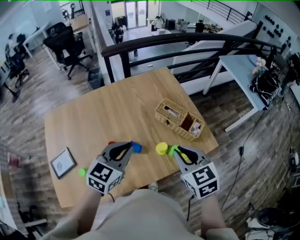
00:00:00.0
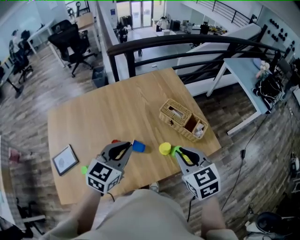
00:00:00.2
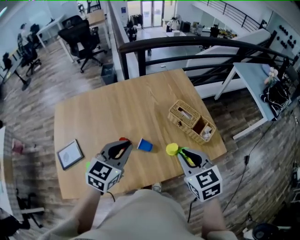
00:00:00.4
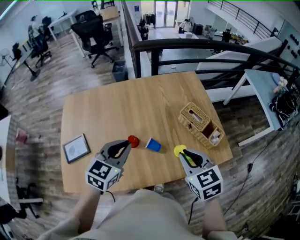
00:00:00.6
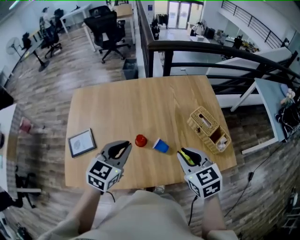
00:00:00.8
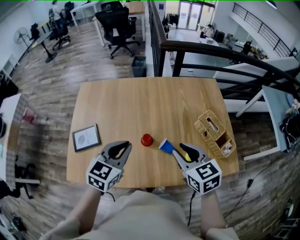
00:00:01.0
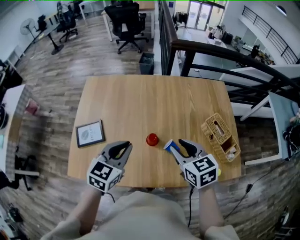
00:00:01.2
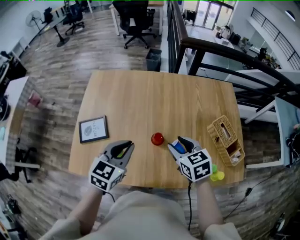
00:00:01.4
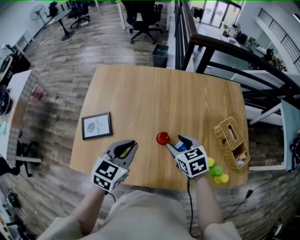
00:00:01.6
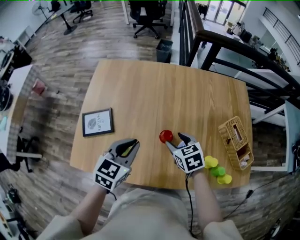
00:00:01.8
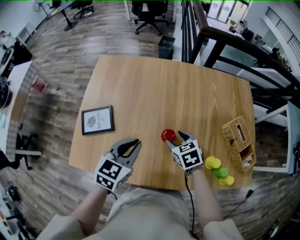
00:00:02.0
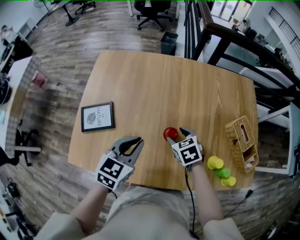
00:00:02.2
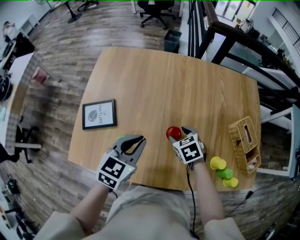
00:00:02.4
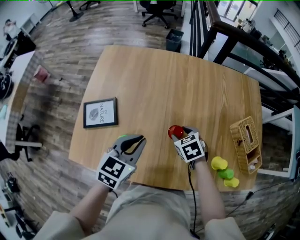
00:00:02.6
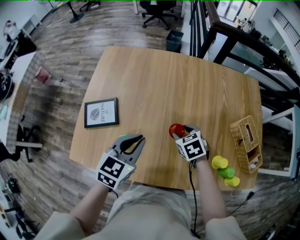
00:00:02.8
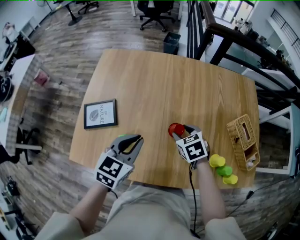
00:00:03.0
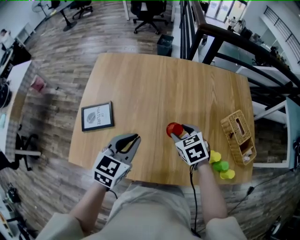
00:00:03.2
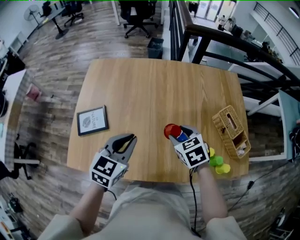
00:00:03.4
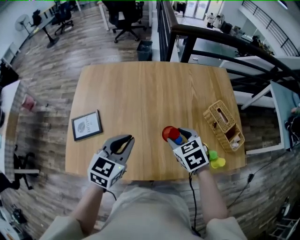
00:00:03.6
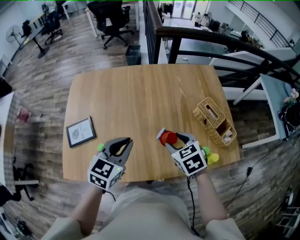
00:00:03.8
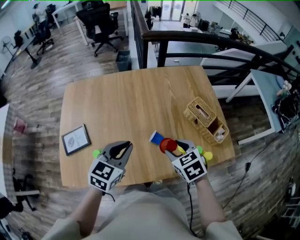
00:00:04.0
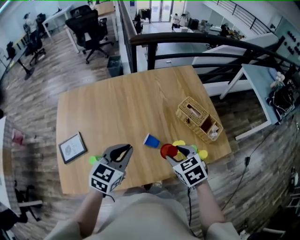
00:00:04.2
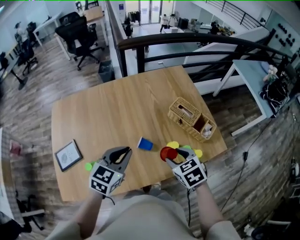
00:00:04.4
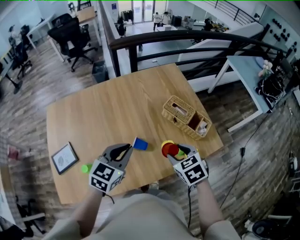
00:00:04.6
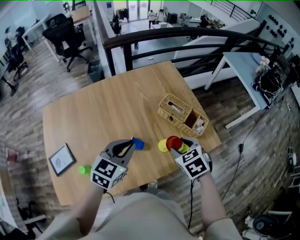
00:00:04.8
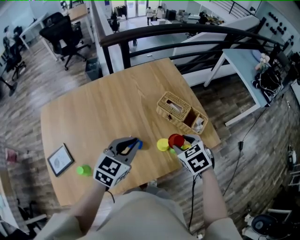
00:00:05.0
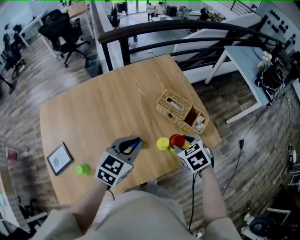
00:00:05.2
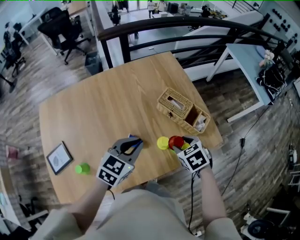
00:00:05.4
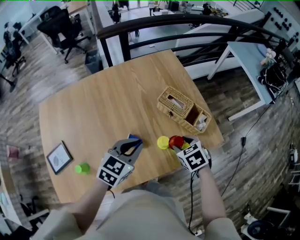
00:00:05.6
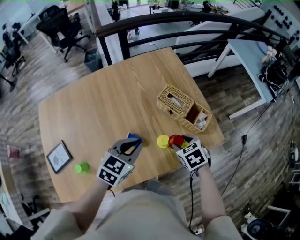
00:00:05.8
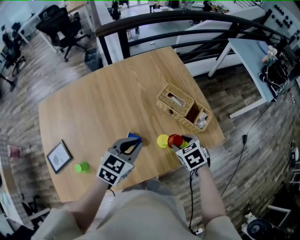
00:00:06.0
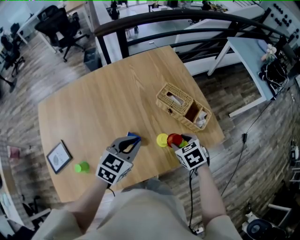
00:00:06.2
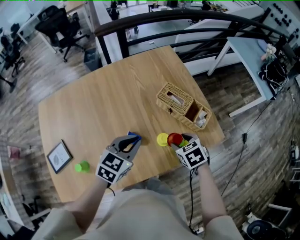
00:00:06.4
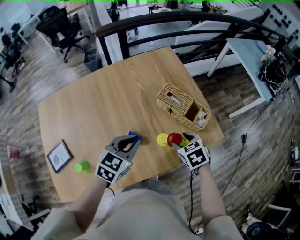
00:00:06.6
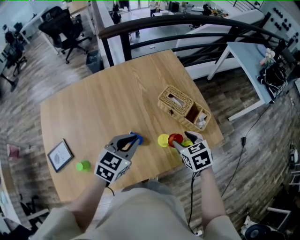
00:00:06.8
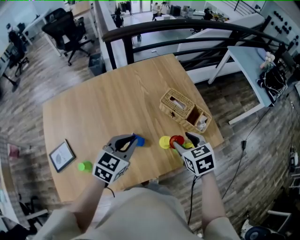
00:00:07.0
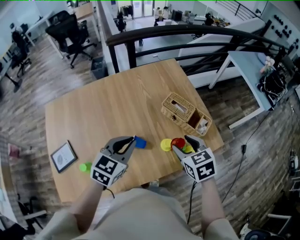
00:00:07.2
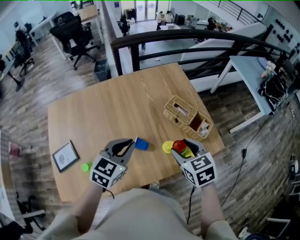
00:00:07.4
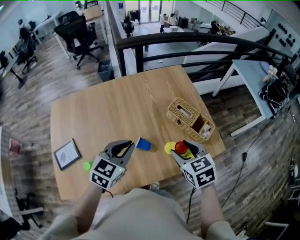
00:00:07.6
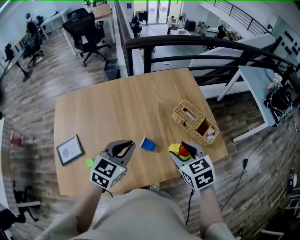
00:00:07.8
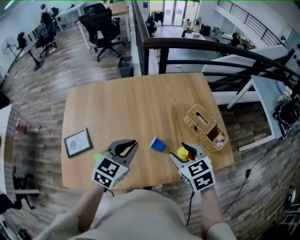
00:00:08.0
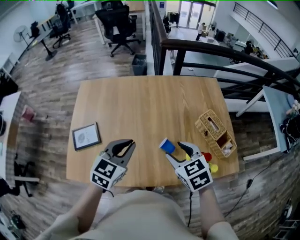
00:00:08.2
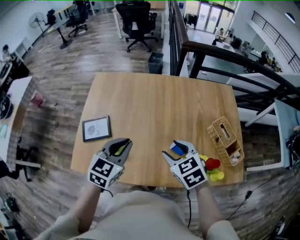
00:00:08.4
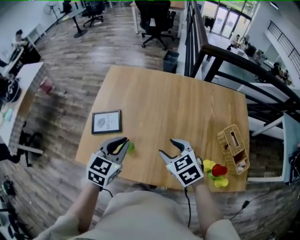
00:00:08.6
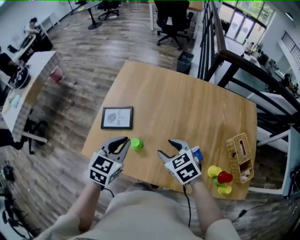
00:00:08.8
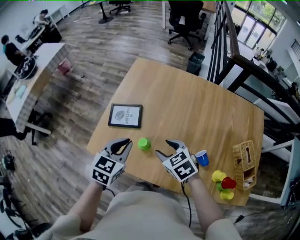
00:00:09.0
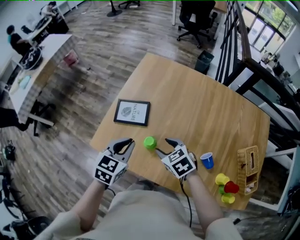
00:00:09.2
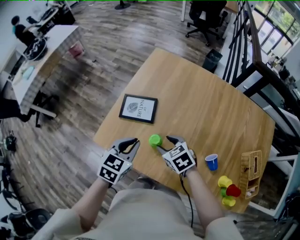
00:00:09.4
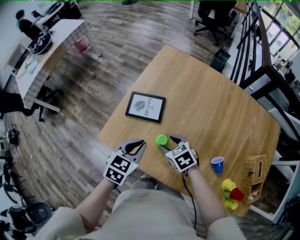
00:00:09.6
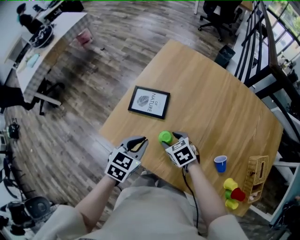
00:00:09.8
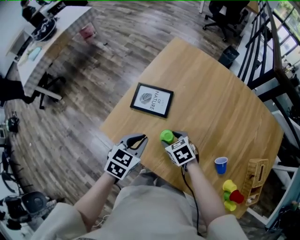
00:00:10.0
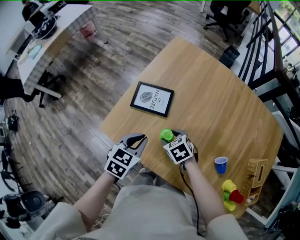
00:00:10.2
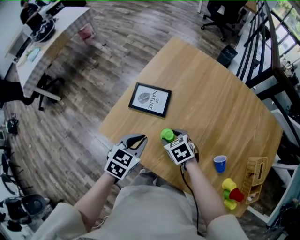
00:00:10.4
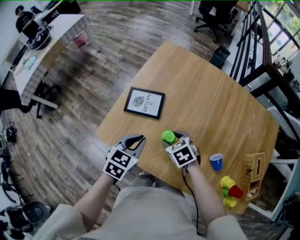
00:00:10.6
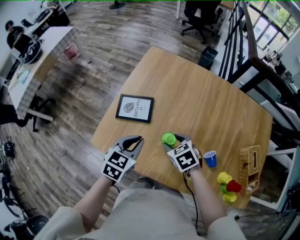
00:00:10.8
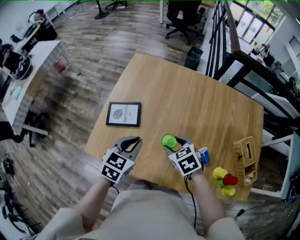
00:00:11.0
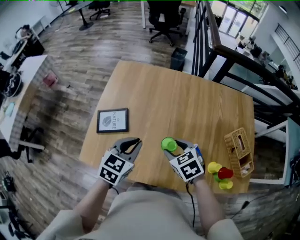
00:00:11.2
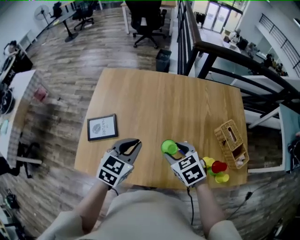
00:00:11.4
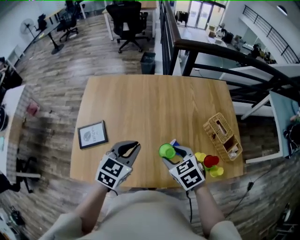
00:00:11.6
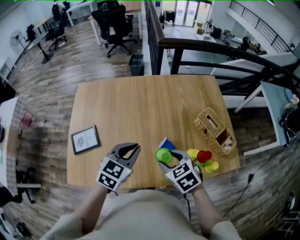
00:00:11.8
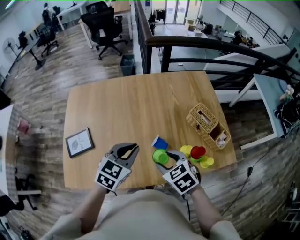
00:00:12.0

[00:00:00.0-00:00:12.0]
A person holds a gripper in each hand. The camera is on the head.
00:00:00.0 to 00:00:01.6: The left gripper shifts by some 25 cm, and swivels about 30 degrees. Meanwhile the right gripper ends up roughly 30 cm from where it was, swivels some 30 degrees, and opens.
00:00:01.6 to 00:00:03.0: The left gripper changes place by approximately 5 cm. Meanwhile the right gripper goes about 10 cm downward.
00:00:03.0 to 00:00:04.4: The right gripper shifts some 30 cm to the right, backward and upward, and rotates some 20 degrees, while the left gripper moves to the right, roughly 20 cm, and swivels about 30 degrees.
00:00:04.4 to 00:00:06.0: The left gripper shifts approximately 15 cm to the right, forward and downward. The right gripper is displaced to the right, downward and forward by about 15 cm.
00:00:06.0 to 00:00:07.6: The right gripper moves upward and to the left, about 15 cm, and rotates some 20 degrees, while the left gripper moves to the left and upward, some 10 cm.
00:00:07.6 to 00:00:09.0: The left gripper moves approximately 35 cm, and rotates some 40 degrees; the right gripper changes place by about 40 cm, and changes its angle by about 50 degrees.
00:00:09.0 to 00:00:10.4: The right gripper goes approximately 15 cm downward, to the left and forward. Meanwhile the left gripper moves downward and to the left, roughly 10 cm.
00:00:10.4 to 00:00:12.0: The right gripper shifts by approximately 40 cm, and swivels some 40 degrees. The left gripper shifts by some 35 cm, and changes its angle by approximately 40 degrees.

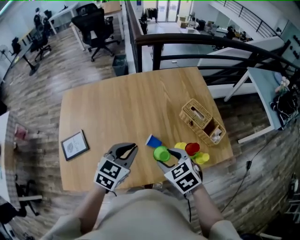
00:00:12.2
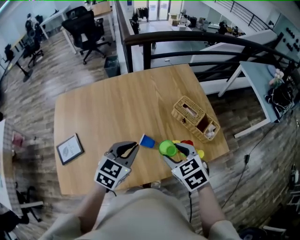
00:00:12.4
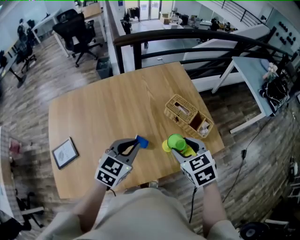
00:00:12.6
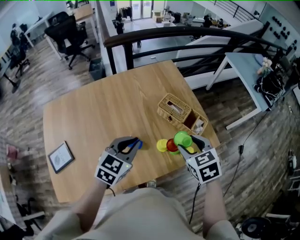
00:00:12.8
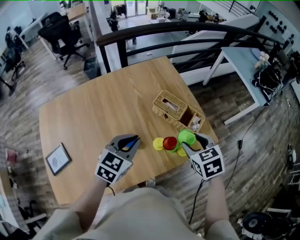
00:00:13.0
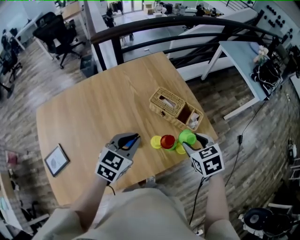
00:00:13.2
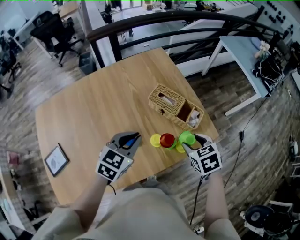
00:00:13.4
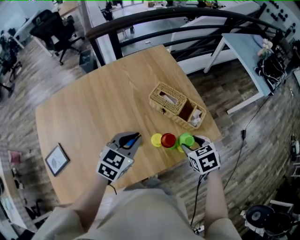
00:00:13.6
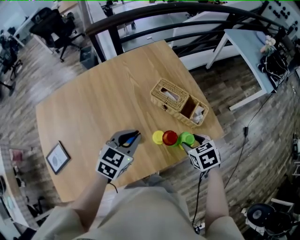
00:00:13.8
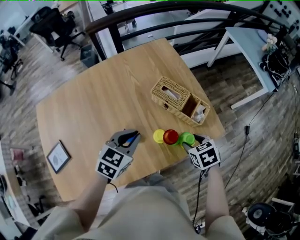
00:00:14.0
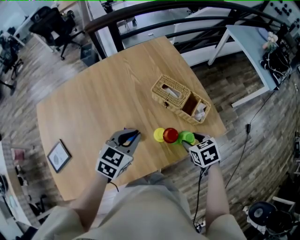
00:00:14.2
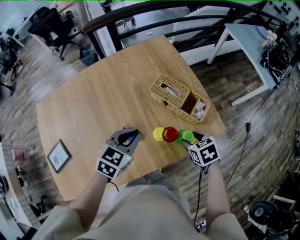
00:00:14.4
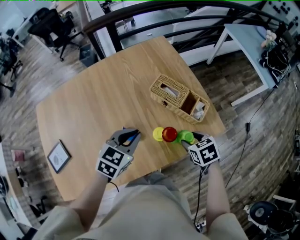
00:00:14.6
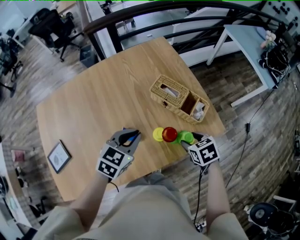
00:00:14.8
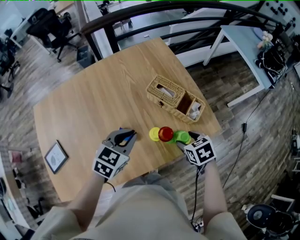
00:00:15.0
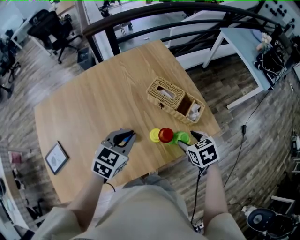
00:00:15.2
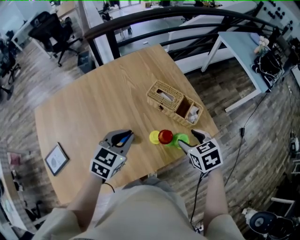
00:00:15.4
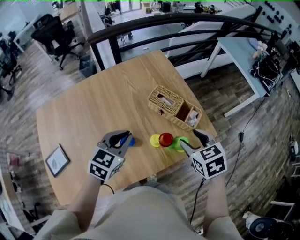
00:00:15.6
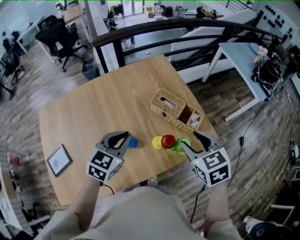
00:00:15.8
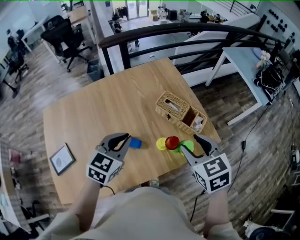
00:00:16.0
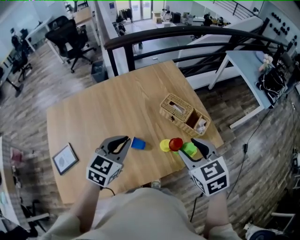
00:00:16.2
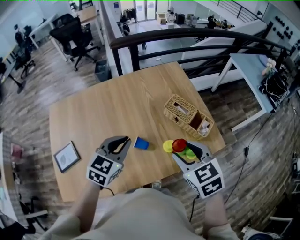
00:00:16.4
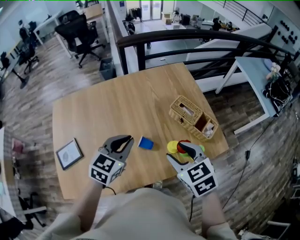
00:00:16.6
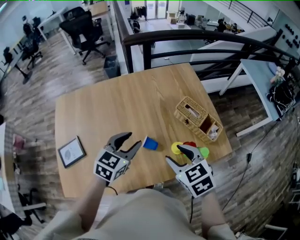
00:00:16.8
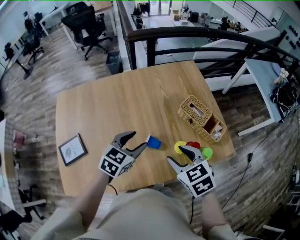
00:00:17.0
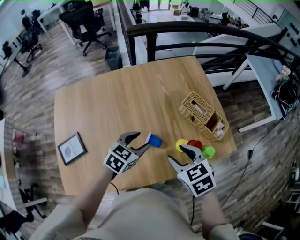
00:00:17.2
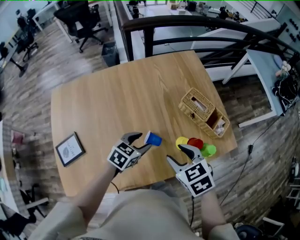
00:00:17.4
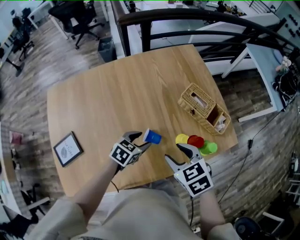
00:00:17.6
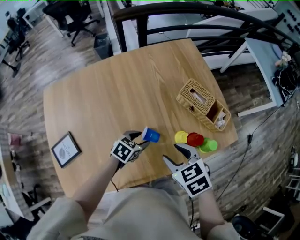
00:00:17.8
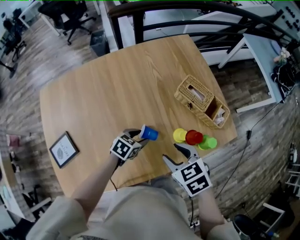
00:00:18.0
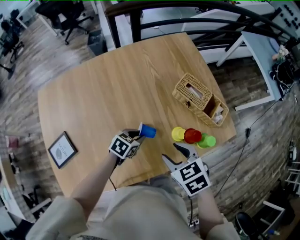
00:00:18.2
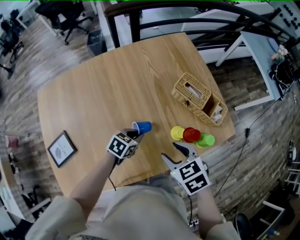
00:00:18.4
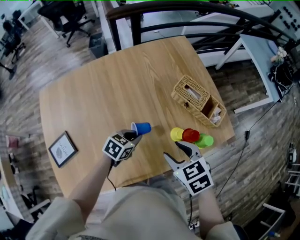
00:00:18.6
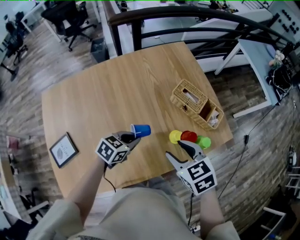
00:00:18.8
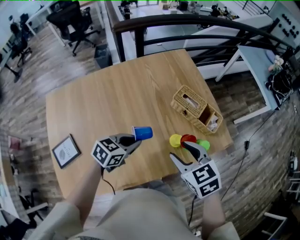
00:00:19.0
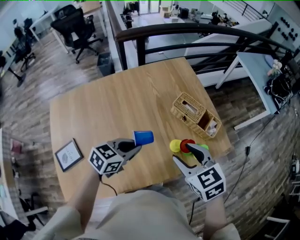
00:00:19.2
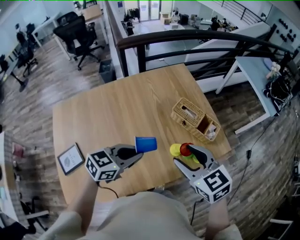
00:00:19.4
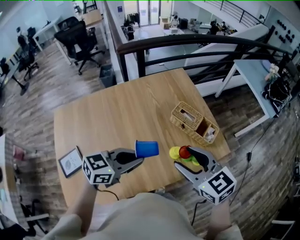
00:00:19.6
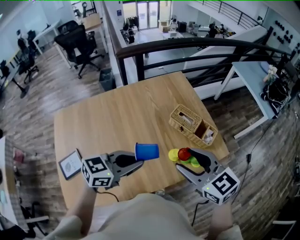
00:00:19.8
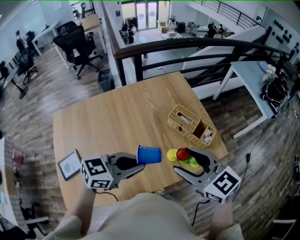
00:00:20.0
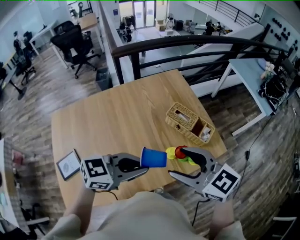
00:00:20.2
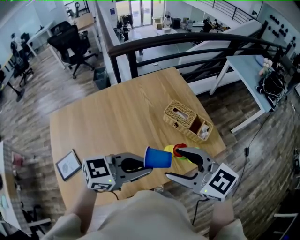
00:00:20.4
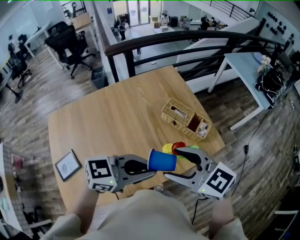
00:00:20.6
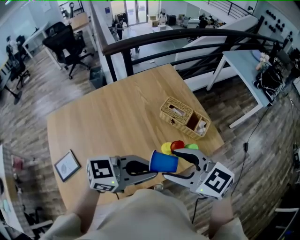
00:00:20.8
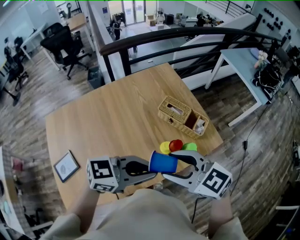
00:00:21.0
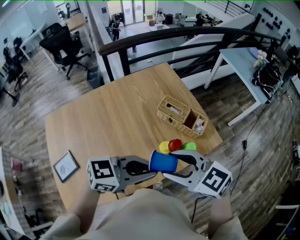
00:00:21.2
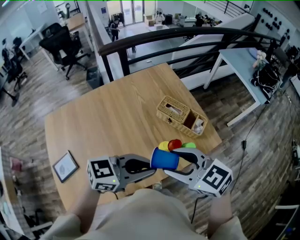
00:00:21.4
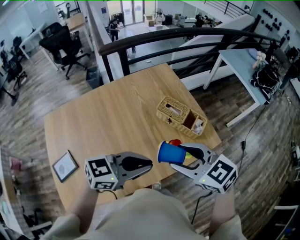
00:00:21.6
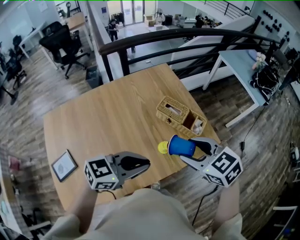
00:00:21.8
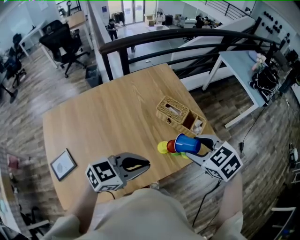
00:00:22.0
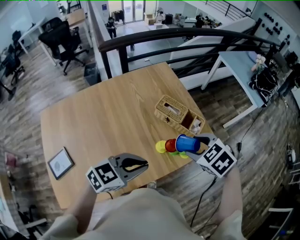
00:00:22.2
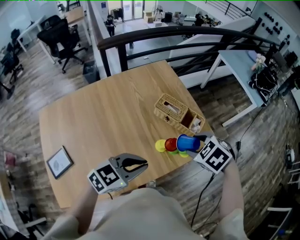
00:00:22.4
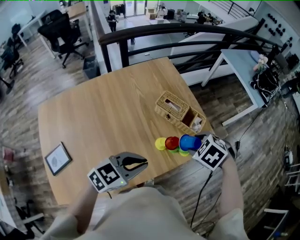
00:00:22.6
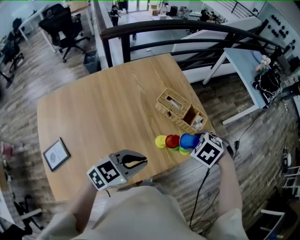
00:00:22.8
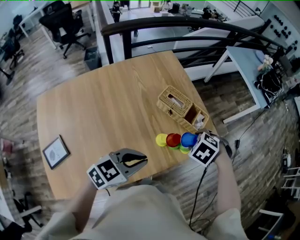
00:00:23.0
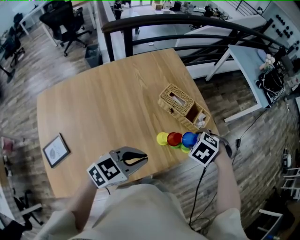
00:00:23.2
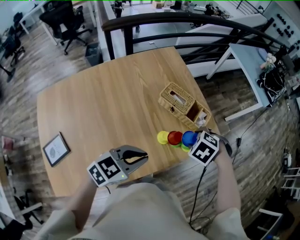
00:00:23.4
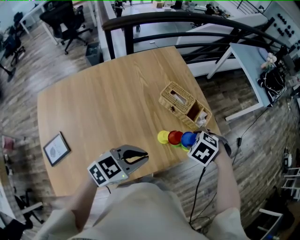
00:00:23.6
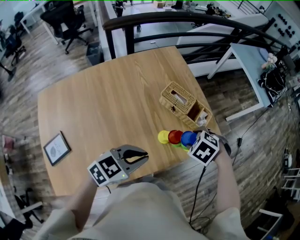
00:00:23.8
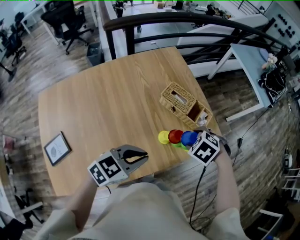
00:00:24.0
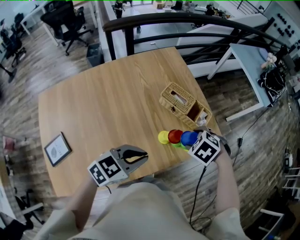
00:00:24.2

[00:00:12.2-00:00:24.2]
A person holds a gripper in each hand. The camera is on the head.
00:00:12.2 to 00:00:13.8: The right gripper changes place by roughly 25 cm, and turns by roughly 30 degrees, while the left gripper ends up about 20 cm from where it was.
00:00:13.8 to 00:00:15.2: The grippers move only a little.
00:00:15.2 to 00:00:16.6: The right gripper travels to the left and upward by some 25 cm, and rotates some 30 degrees. Meanwhile the left gripper moves to the left and upward, some 15 cm.
00:00:16.6 to 00:00:18.2: The left gripper moves downward, about 25 cm, turns by some 40 degrees, and opens and closes again. Meanwhile the right gripper shifts about 10 cm downward.
00:00:18.2 to 00:00:19.8: The left gripper is displaced upward by some 30 cm, and points its fingers roughly 30 degrees further upward, while the right gripper travels upward by about 20 cm, and tips its fingers upward by about 30 degrees.
00:00:19.8 to 00:00:21.2: The left gripper moves about 10 cm, and turns by about 20 degrees.
00:00:21.2 to 00:00:22.6: The right gripper changes place by some 20 cm, and points its fingers about 50 degrees further downward, while the left gripper is displaced downward by roughly 10 cm, and rotates approximately 20 degrees.
00:00:22.6 to 00:00:24.2: The right gripper shifts roughly 5 cm downward.
